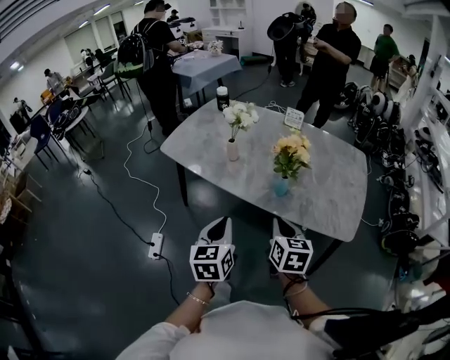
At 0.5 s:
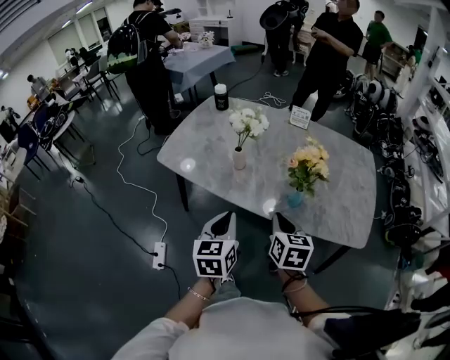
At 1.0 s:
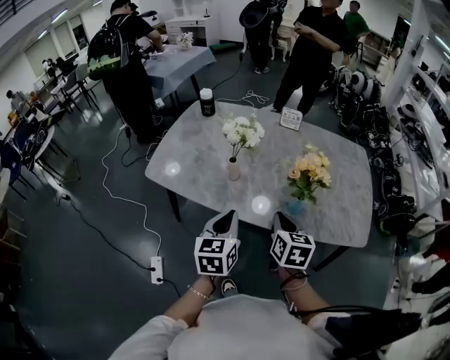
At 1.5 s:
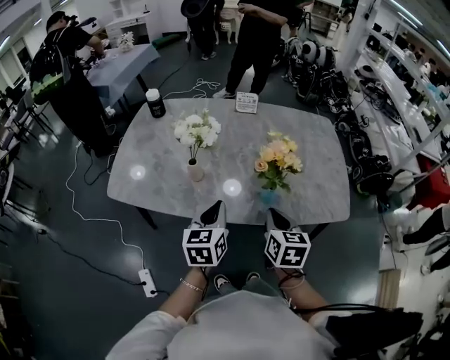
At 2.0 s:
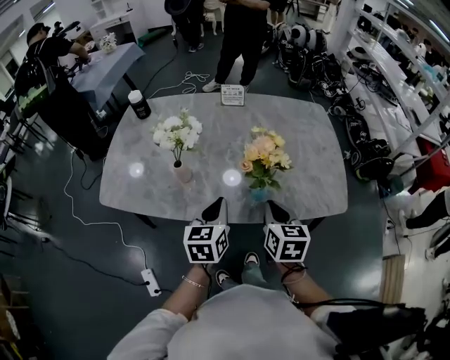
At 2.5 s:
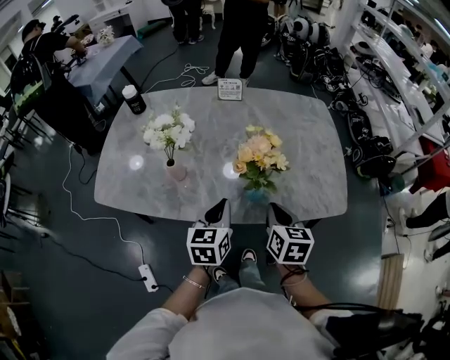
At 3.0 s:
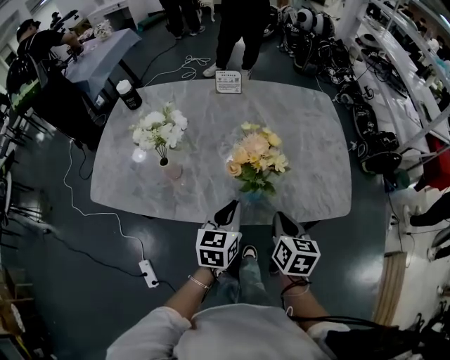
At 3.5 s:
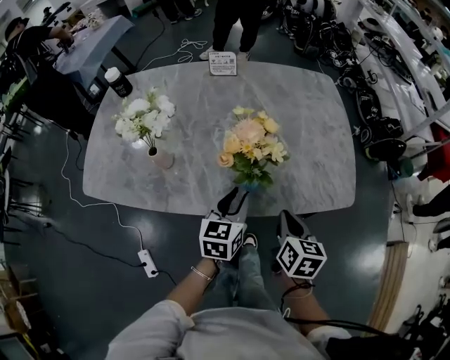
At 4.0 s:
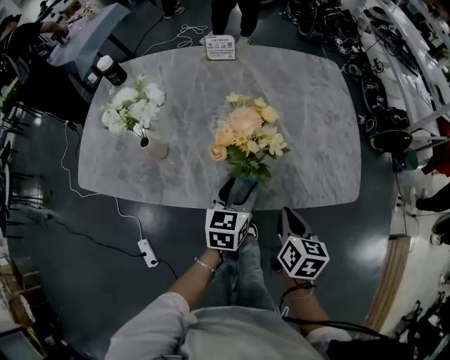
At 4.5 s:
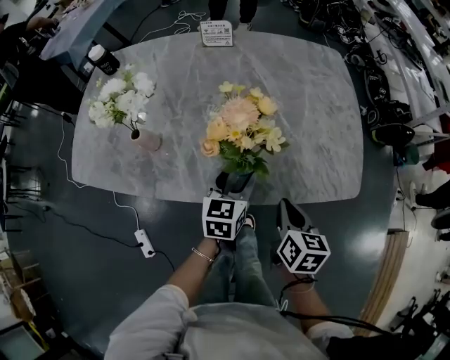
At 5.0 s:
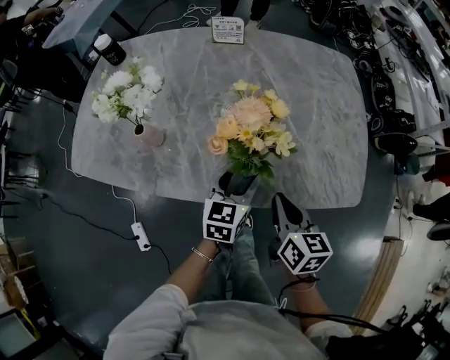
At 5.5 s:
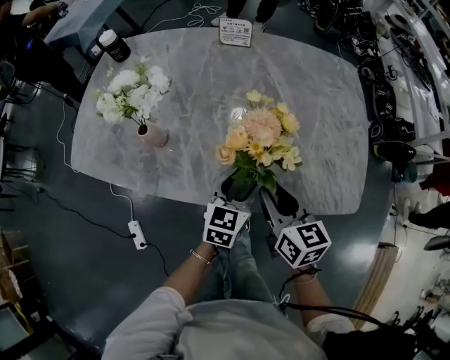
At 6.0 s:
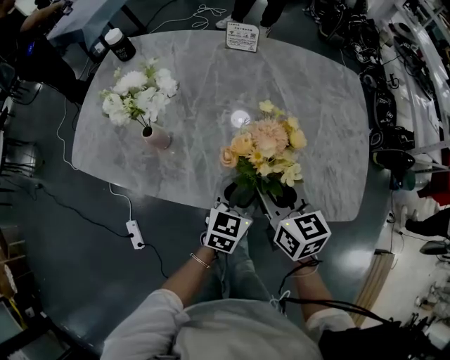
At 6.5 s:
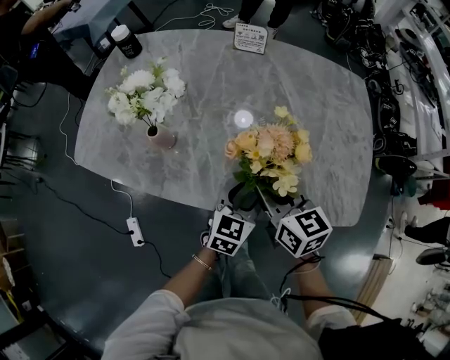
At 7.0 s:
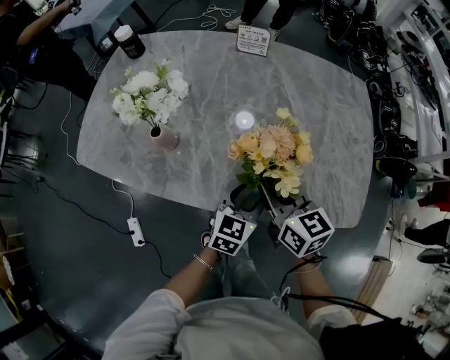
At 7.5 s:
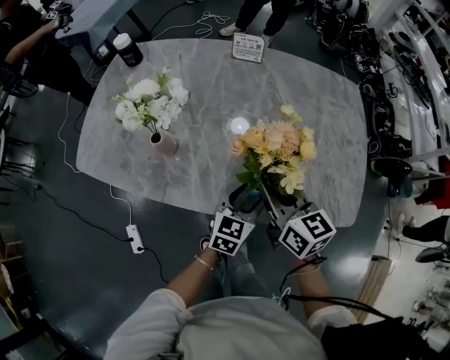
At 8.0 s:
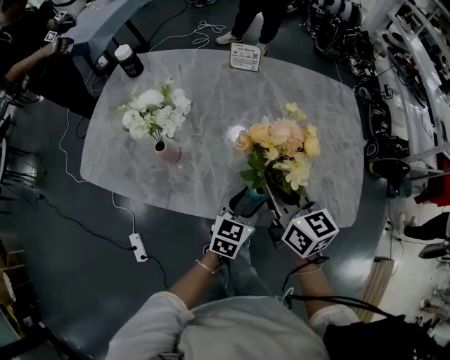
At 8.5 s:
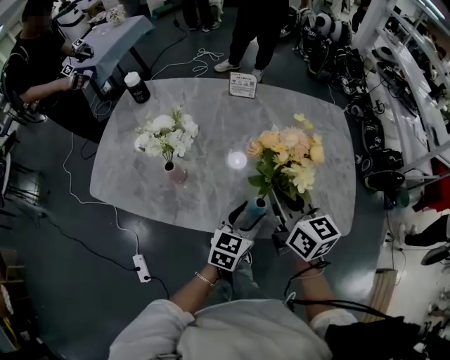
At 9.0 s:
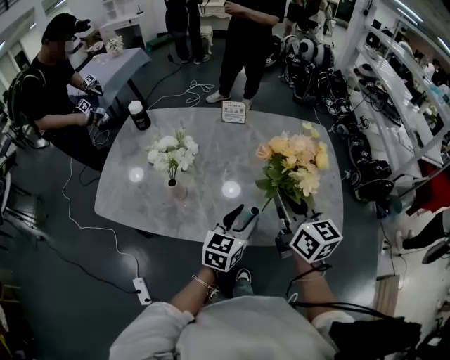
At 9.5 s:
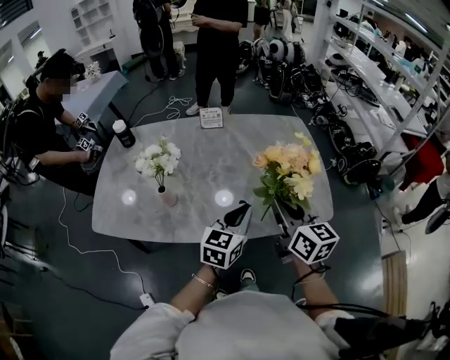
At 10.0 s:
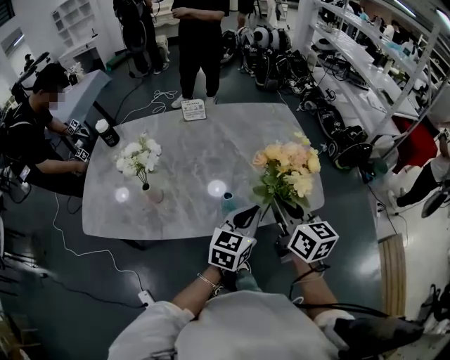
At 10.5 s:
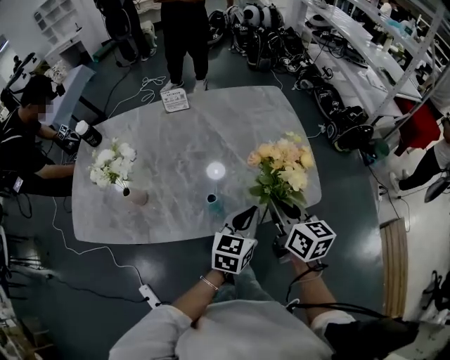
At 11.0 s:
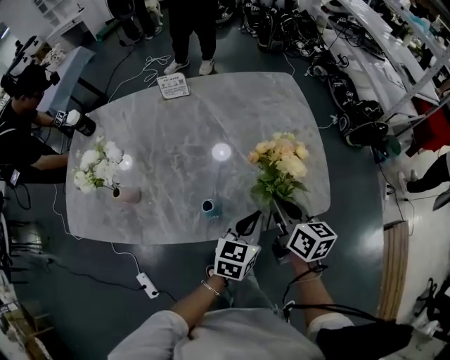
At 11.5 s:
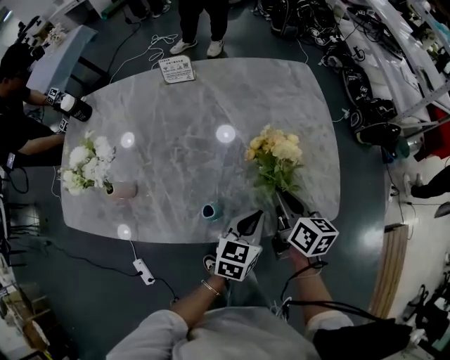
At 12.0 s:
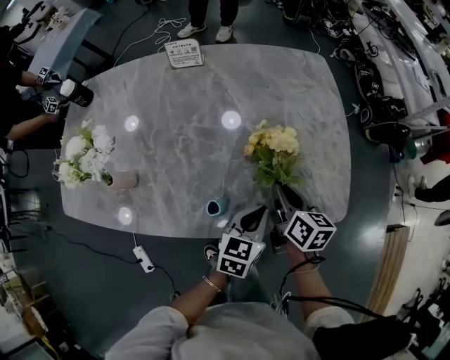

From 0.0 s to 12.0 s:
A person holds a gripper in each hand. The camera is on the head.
From 0.0 s to 2.0 s: The right gripper shifts by about 15 cm, and rotates roughly 20 degrees. The left gripper shifts by about 25 cm, and changes its angle by some 30 degrees.
From 2.0 s to 4.0 s: The left gripper heads to the right, downward and forward, covering roughly 15 cm, and opens its fingers. The right gripper moves to the right and downward, about 15 cm.
From 4.0 s to 6.0 s: The right gripper moves forward, to the left and upward, about 15 cm, swivels roughly 30 degrees, and opens its fingers.
From 6.0 s to 8.0 s: The right gripper heads upward, covering roughly 5 cm.
From 8.0 s to 10.0 s: The right gripper shifts roughly 15 cm to the right, backward and upward, and rotates some 20 degrees. The left gripper heads upward, to the right and backward, covering about 15 cm, and closes up.
From 10.0 s to 12.0 s: Both grippers travel together downward and forward, some 20 cm. The right gripper swivels about 30 degrees. Meanwhile the left gripper turns by approximately 20 degrees.

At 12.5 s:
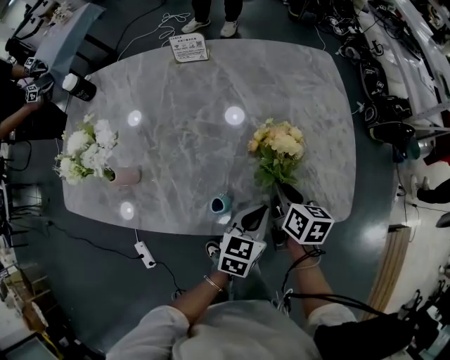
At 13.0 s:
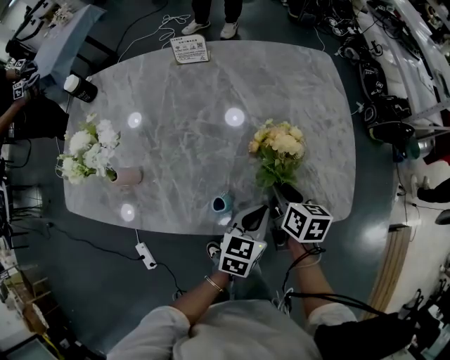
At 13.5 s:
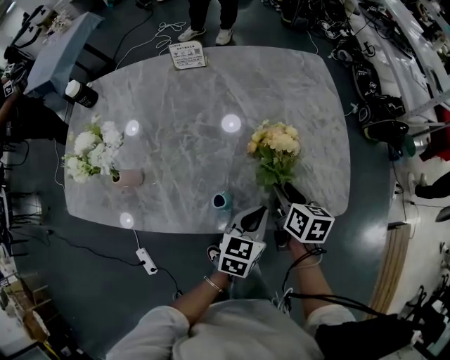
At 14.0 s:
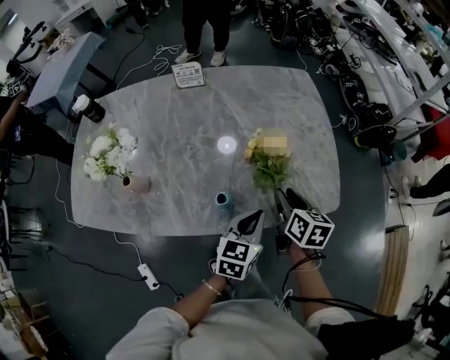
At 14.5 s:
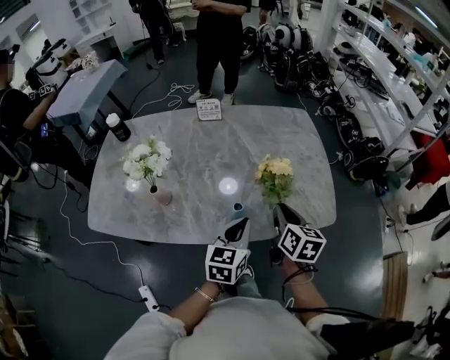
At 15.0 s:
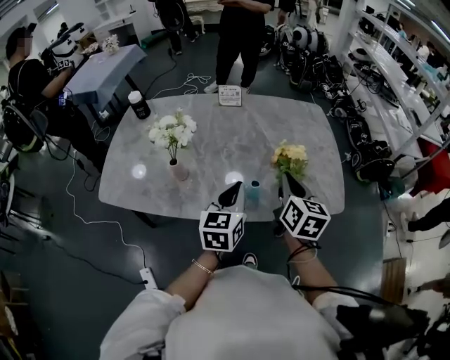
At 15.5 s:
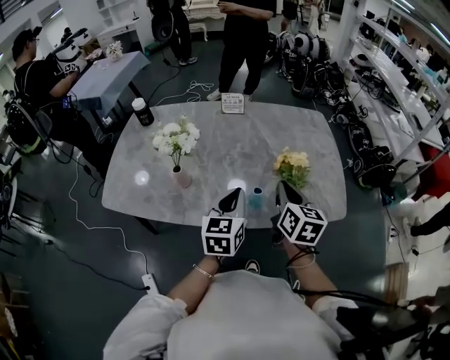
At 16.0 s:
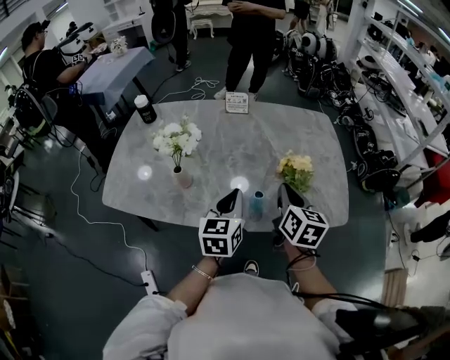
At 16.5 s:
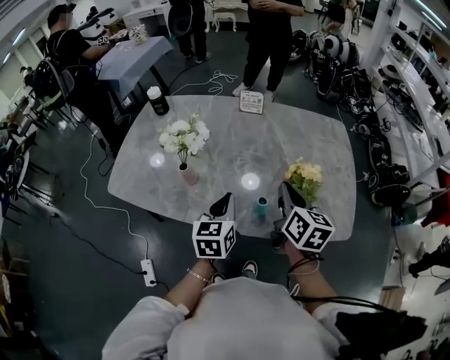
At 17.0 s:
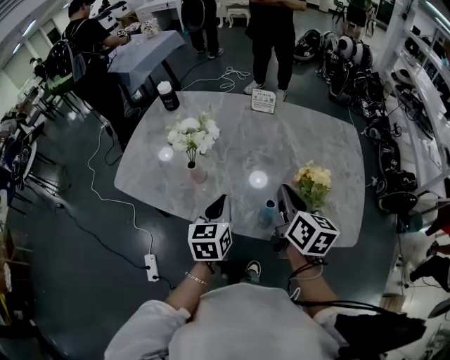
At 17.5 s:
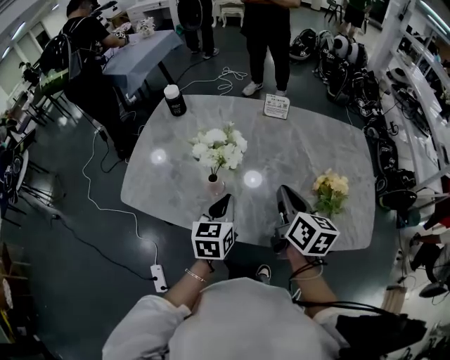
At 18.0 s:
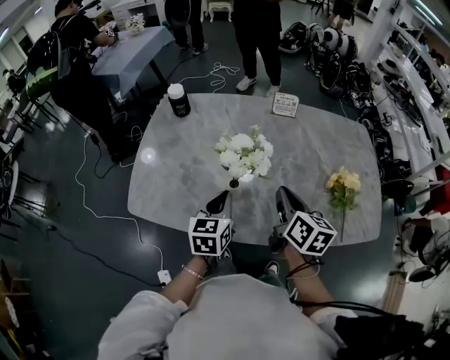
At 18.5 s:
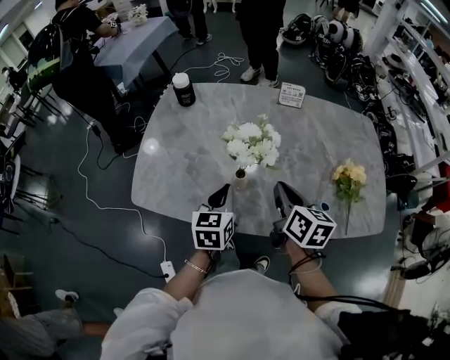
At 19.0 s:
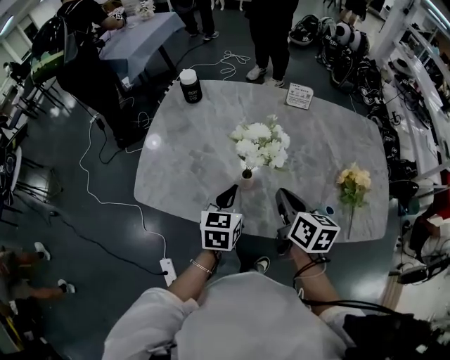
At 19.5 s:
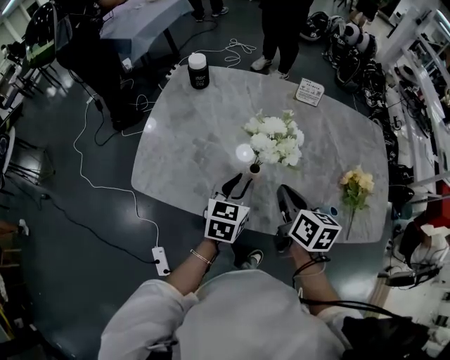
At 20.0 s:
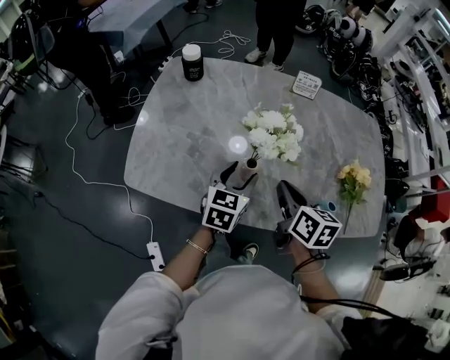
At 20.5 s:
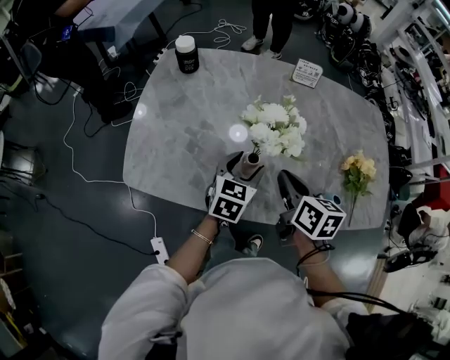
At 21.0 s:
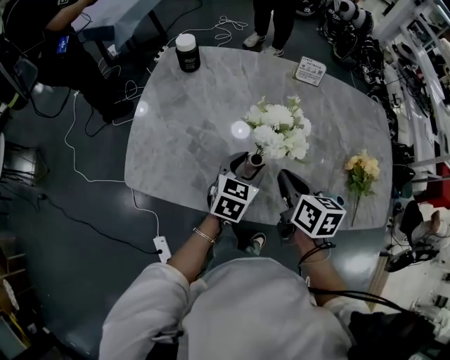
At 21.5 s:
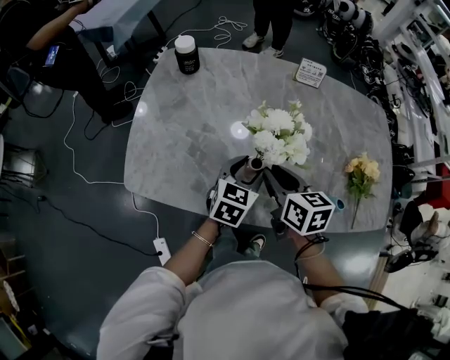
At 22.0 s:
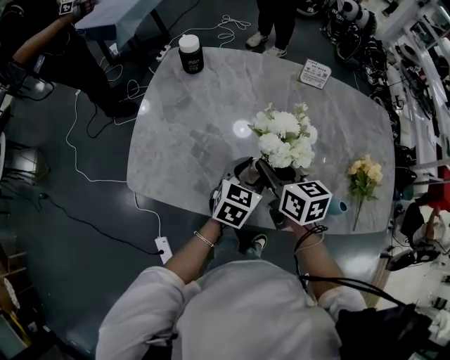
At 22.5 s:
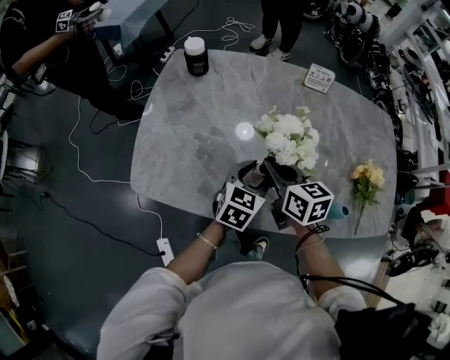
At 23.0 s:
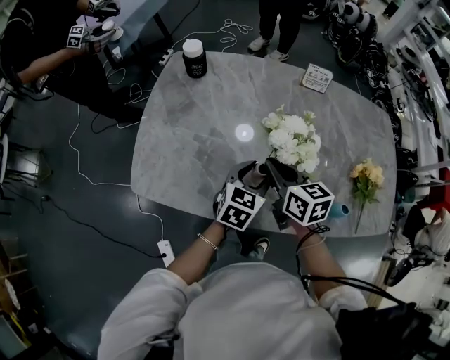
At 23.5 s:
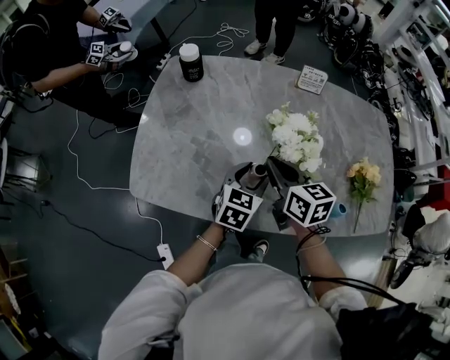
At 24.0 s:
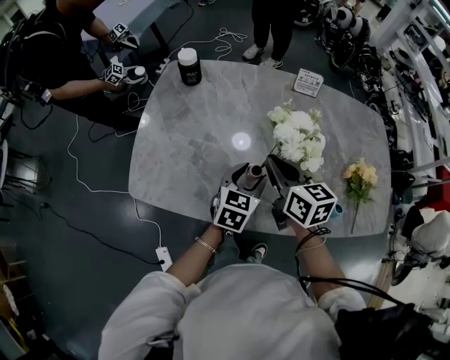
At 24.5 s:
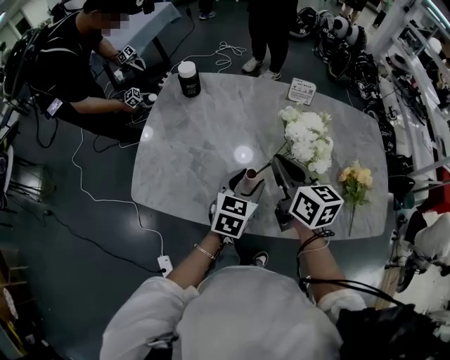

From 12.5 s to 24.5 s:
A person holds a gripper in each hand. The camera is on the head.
From 12.5 s to 14.5 s: The left gripper shifts roughly 15 cm upward, to the left and backward, while the right gripper heads upward and backward, covering approximately 15 cm, and opens and closes again.
From 14.5 s to 16.5 s: The left gripper goes some 15 cm to the left, and turns by approximately 20 degrees. The right gripper is displaced to the left and upward by approximately 10 cm.
From 16.5 s to 18.5 s: Both grippers travel together to the left, roughly 20 cm.
From 18.5 s to 20.5 s: The left gripper shifts about 5 cm downward, and opens. Meanwhile the right gripper shifts by approximately 5 cm.
From 20.5 s to 22.5 s: The right gripper moves to the left and forward, some 10 cm.
From 22.5 s to 24.5 s: The right gripper is displaced upward by approximately 10 cm.

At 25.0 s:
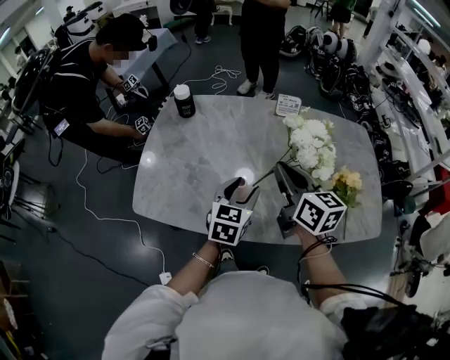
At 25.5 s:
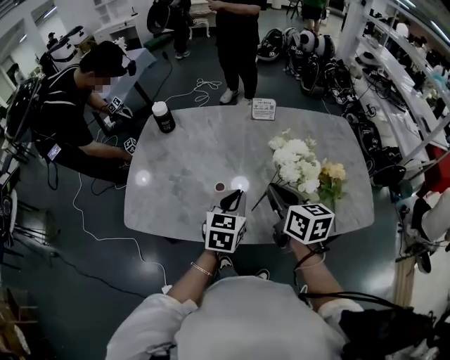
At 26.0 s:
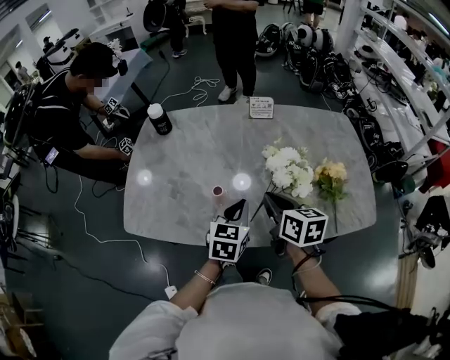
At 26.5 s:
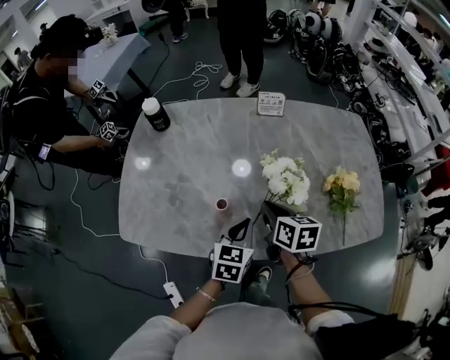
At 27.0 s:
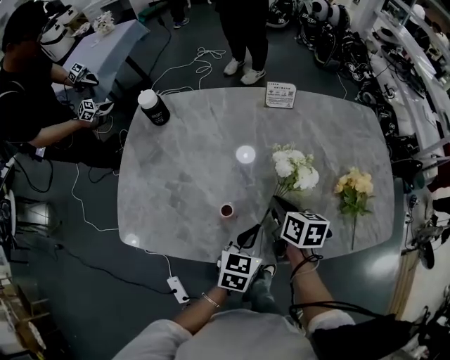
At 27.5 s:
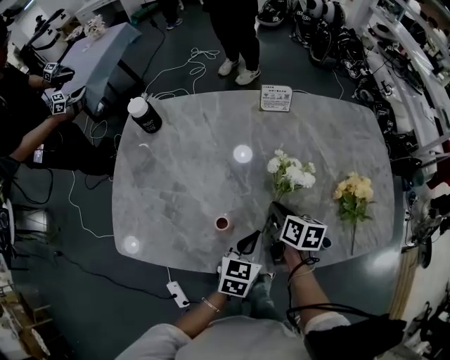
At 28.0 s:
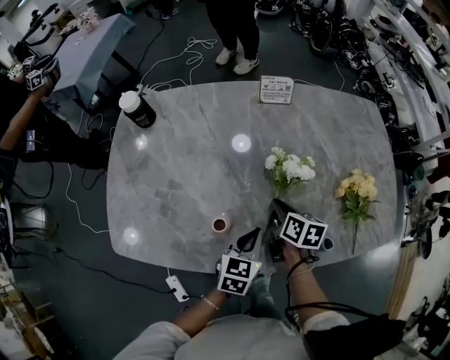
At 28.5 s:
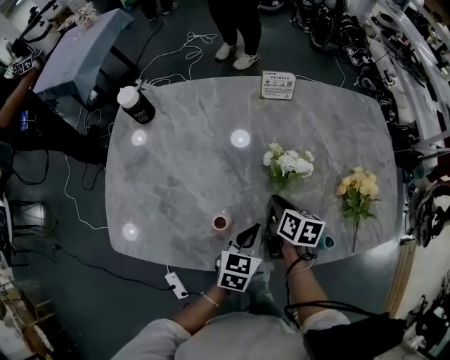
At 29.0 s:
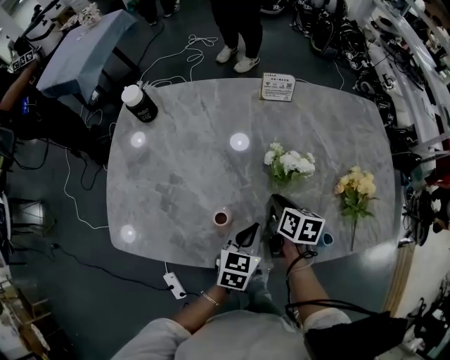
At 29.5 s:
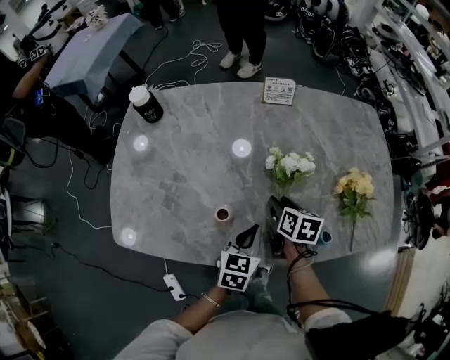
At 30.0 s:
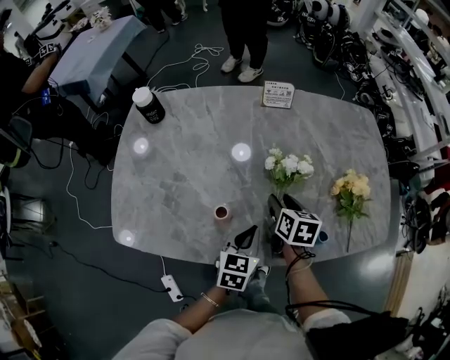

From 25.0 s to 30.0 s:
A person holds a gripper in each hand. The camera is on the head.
From 25.0 s to 27.5 s: The left gripper is displaced downward and to the right by some 15 cm, and closes up; the right gripper goes some 25 cm downward, and rotates roughly 40 degrees.
From 27.5 s to 30.0 s: The right gripper opens its fingers.
